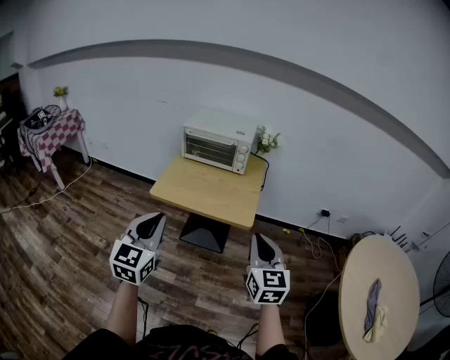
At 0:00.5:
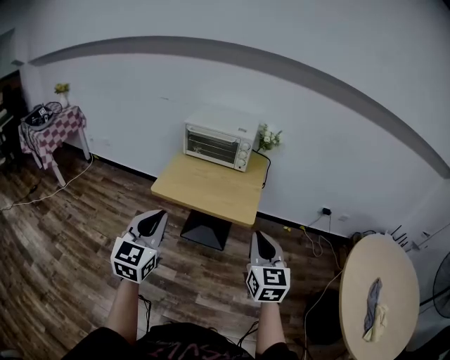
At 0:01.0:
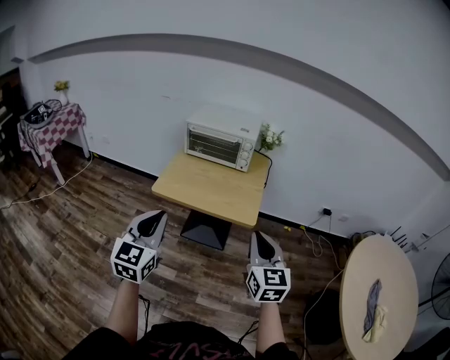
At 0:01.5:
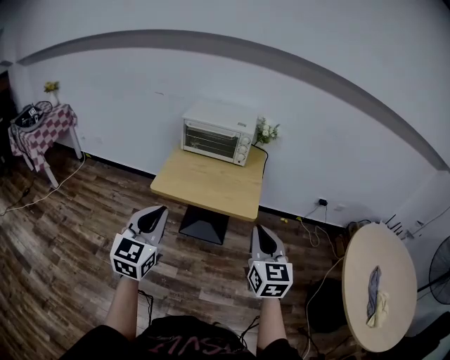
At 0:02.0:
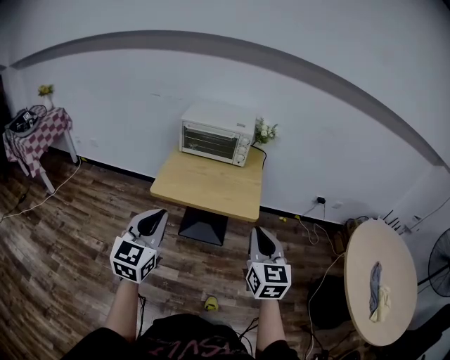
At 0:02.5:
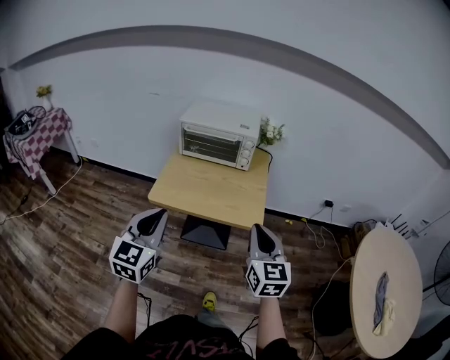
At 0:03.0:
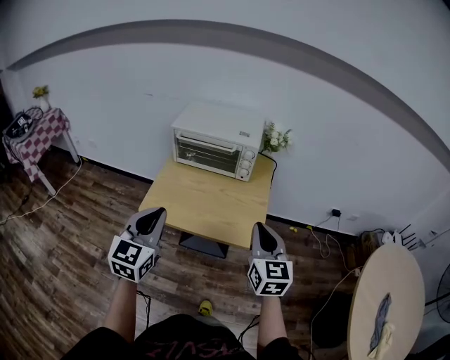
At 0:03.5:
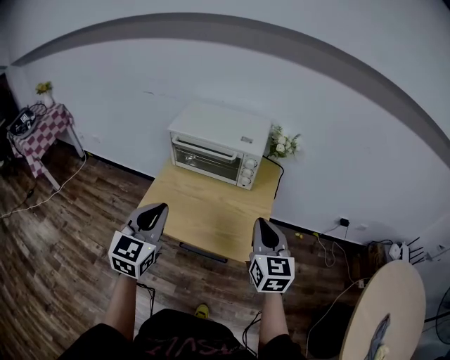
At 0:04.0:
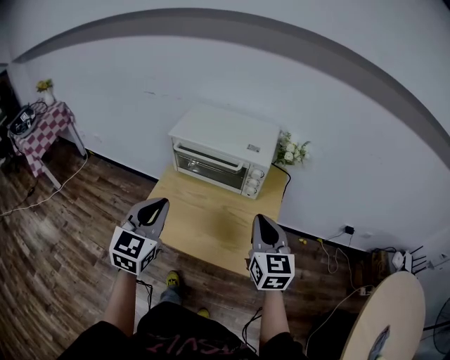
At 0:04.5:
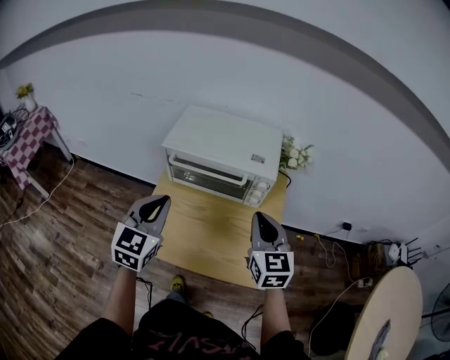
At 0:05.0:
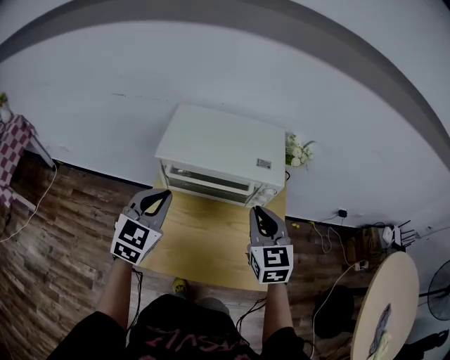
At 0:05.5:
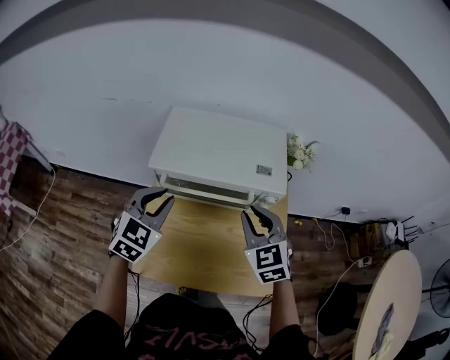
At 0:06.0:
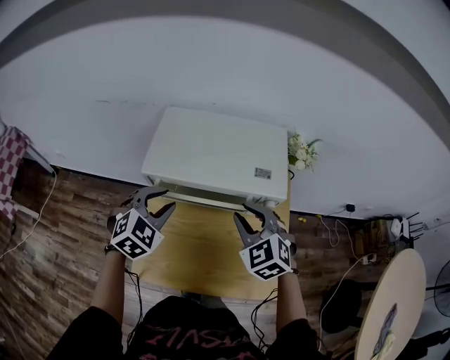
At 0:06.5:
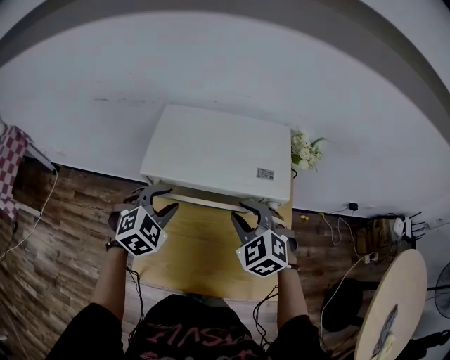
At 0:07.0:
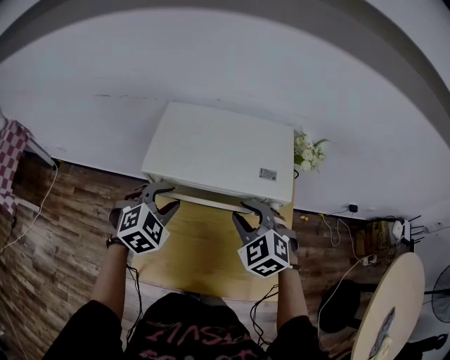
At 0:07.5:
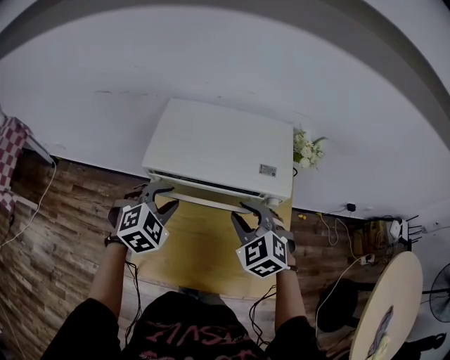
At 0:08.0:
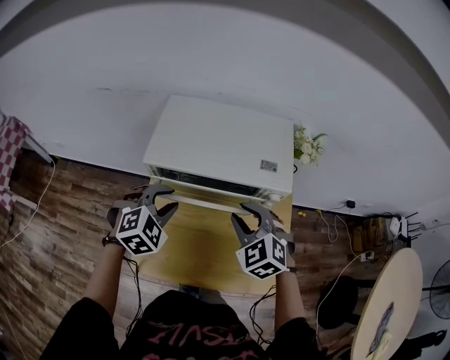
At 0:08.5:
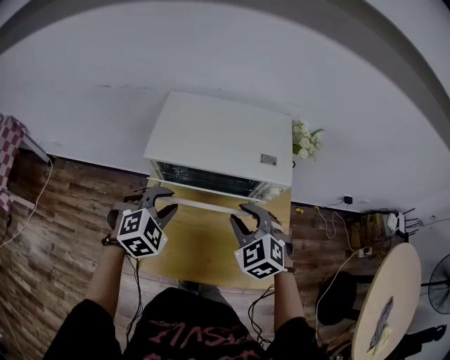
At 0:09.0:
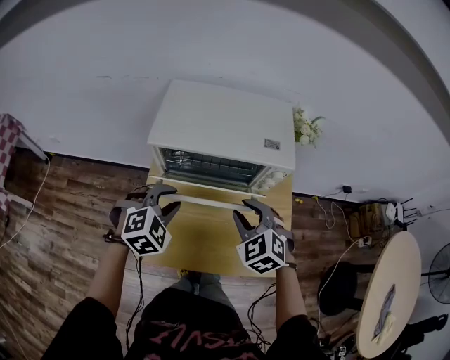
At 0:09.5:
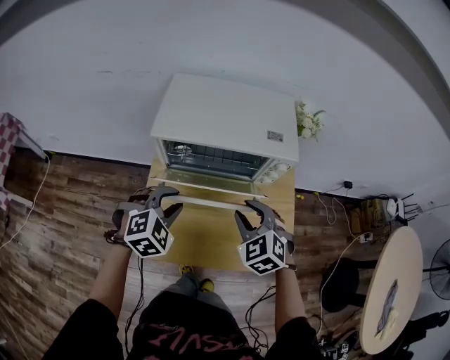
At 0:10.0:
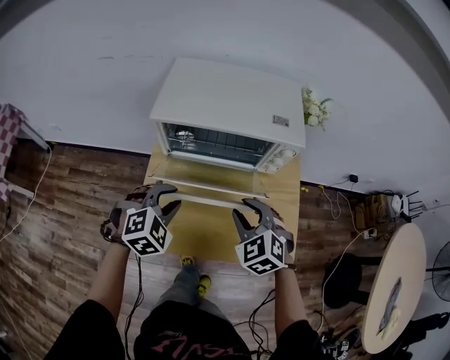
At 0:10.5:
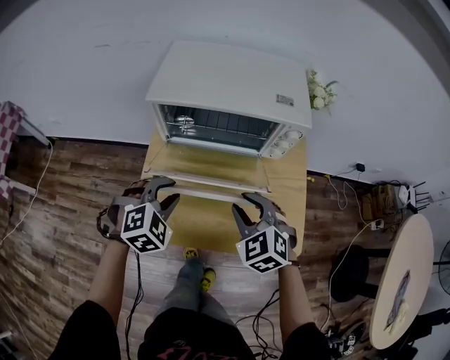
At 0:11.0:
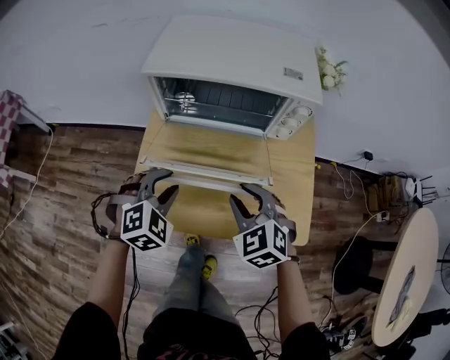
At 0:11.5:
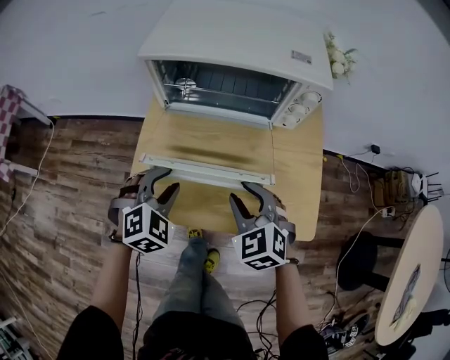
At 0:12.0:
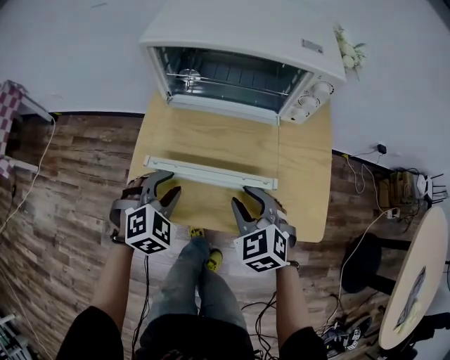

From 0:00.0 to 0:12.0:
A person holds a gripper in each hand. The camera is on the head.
From 0:00.0 to 0:02.0: The two grippers go roughly 5 cm to the left.
From 0:02.0 to 0:04.0: The grippers both shift forward by approximately 40 cm.
From 0:04.0 to 0:06.0: The left gripper shifts approximately 30 cm forward and downward, rotates approximately 40 degrees, and opens up, while the right gripper travels forward and to the left by about 25 cm, changes its angle by approximately 40 degrees, and opens.
From 0:06.0 to 0:08.0: The grippers make only small movements.
From 0:08.0 to 0:10.0: The grippers both shift backward and downward by about 10 cm.
From 0:10.0 to 0:12.0: Both grippers travel together downward and backward, roughly 15 cm.

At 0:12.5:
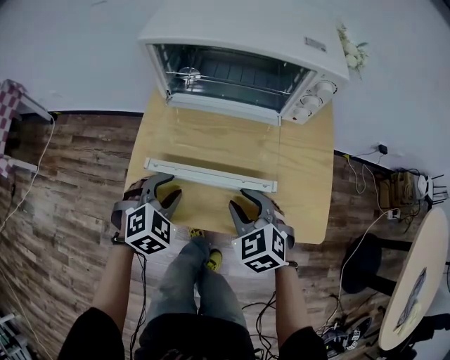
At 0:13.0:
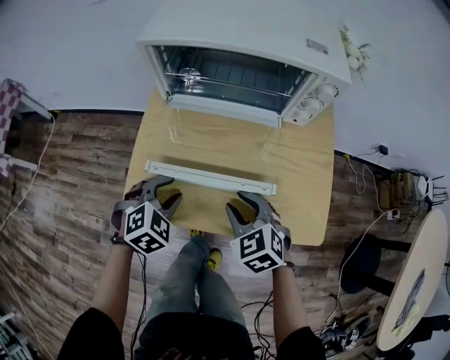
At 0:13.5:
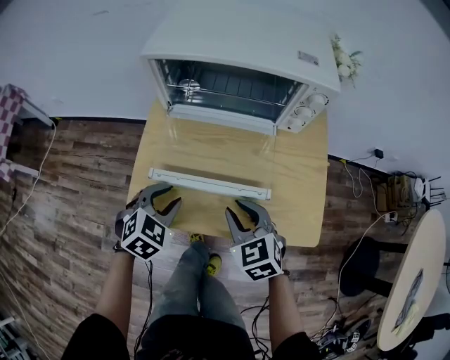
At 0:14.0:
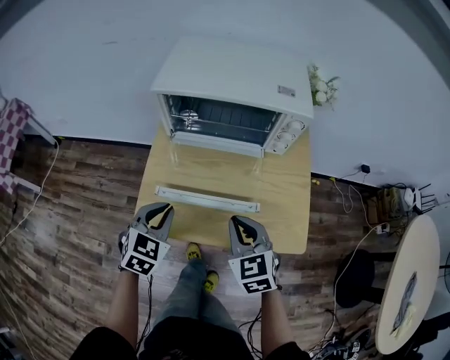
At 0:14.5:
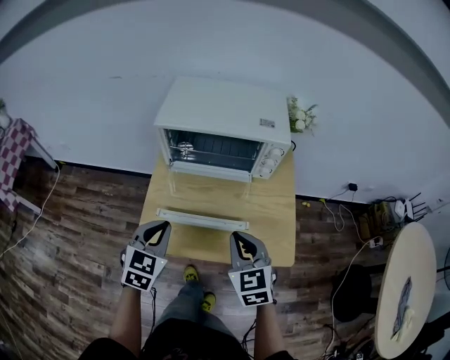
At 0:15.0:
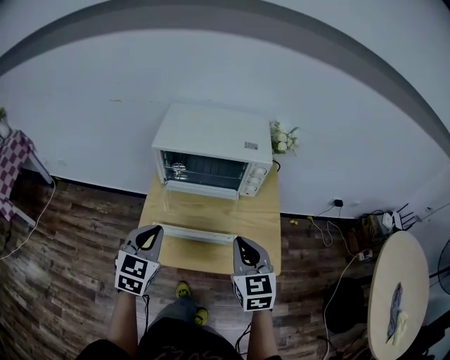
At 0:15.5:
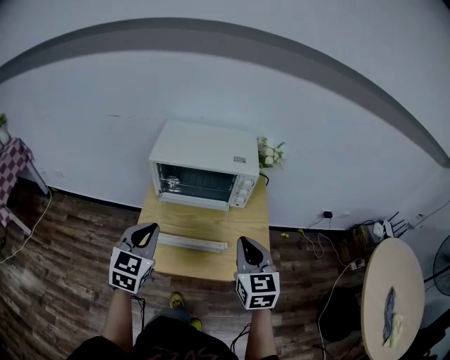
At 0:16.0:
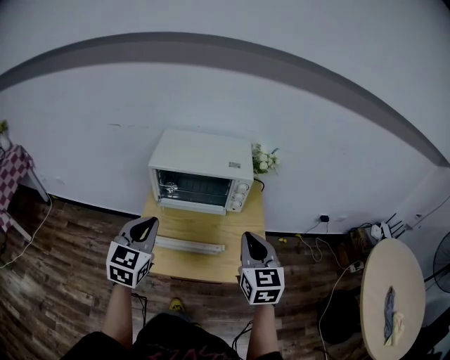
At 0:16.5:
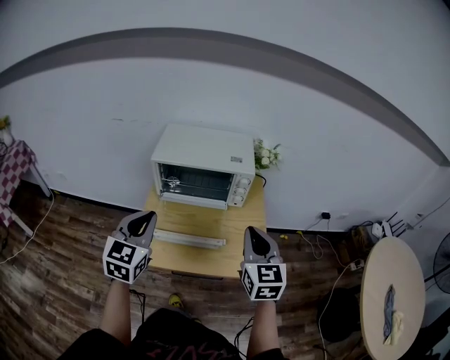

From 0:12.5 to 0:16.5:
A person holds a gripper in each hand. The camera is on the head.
From 0:12.5 to 0:14.5: The grippers both shift upward by about 20 cm. The right gripper rotates approximately 30 degrees, and closes up. Meanwhile the left gripper swivels approximately 30 degrees, and closes.
From 0:14.5 to 0:16.5: The left gripper goes some 20 cm upward; the right gripper goes roughly 20 cm upward and to the right, and swivels roughly 20 degrees.

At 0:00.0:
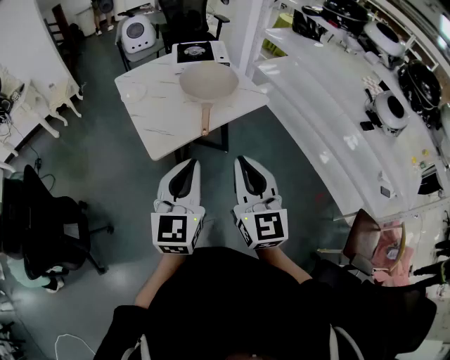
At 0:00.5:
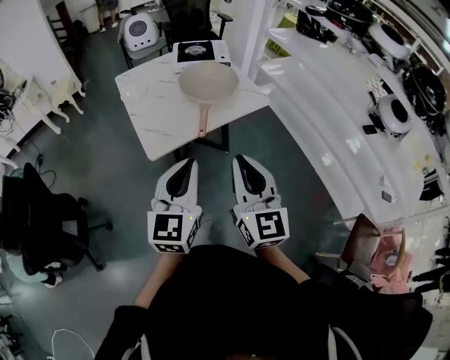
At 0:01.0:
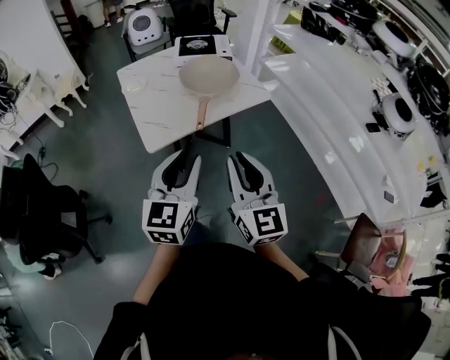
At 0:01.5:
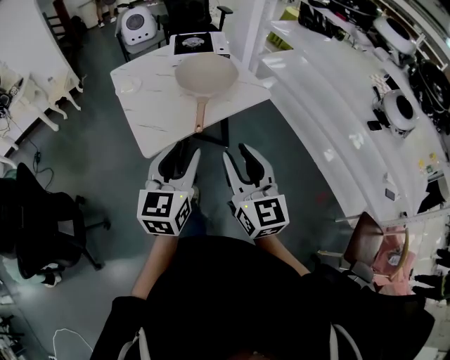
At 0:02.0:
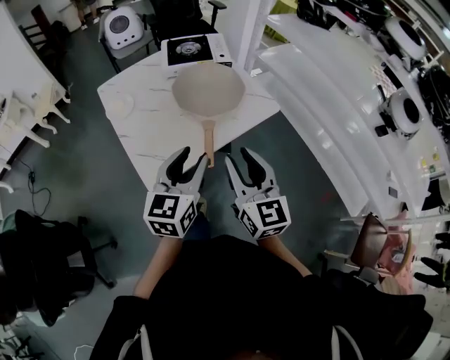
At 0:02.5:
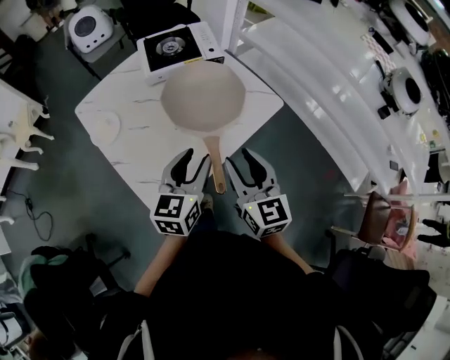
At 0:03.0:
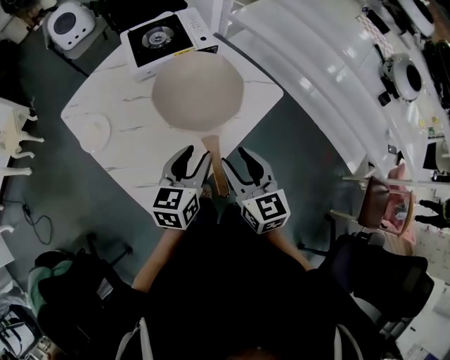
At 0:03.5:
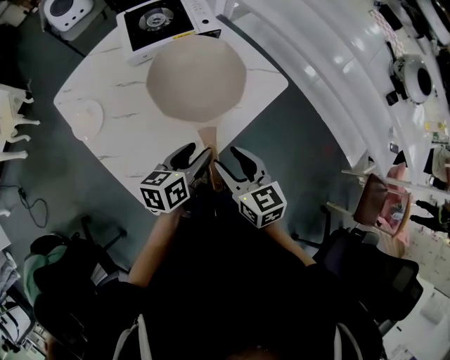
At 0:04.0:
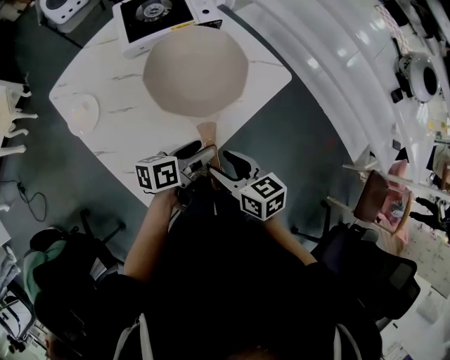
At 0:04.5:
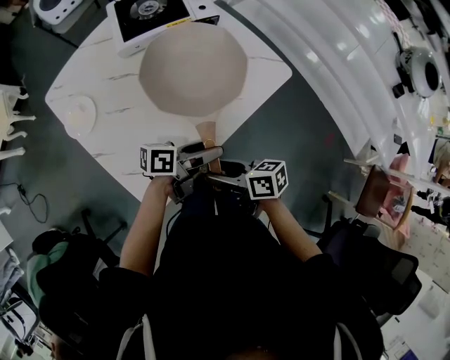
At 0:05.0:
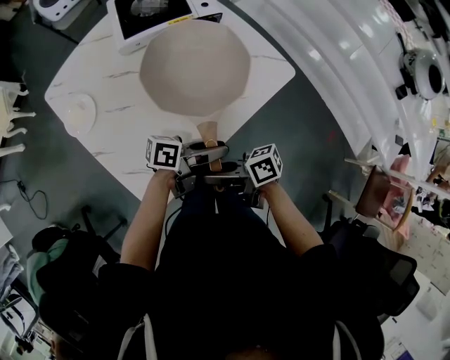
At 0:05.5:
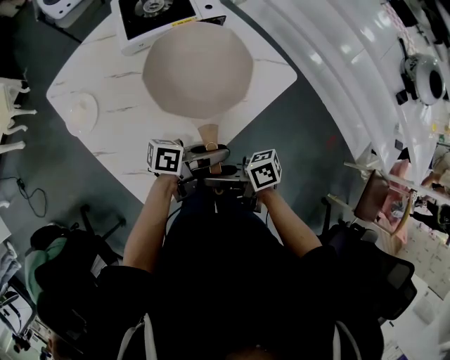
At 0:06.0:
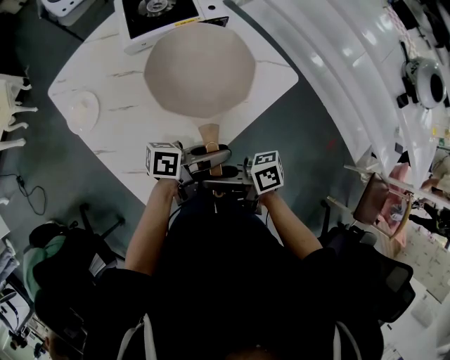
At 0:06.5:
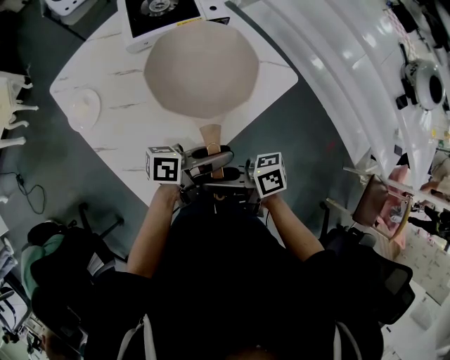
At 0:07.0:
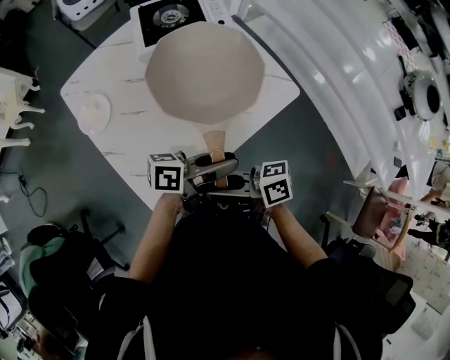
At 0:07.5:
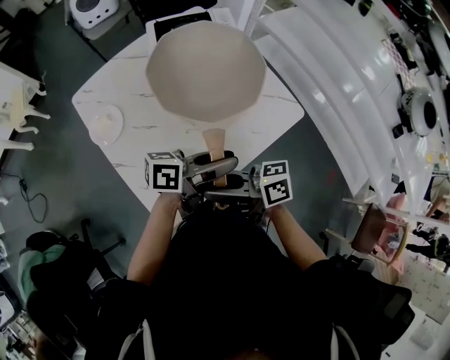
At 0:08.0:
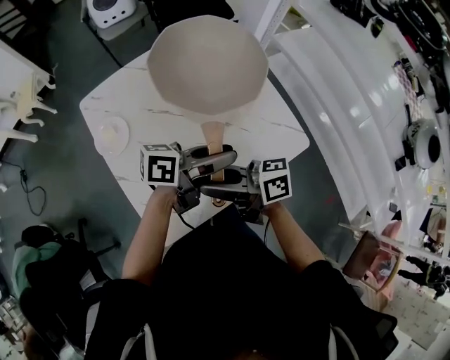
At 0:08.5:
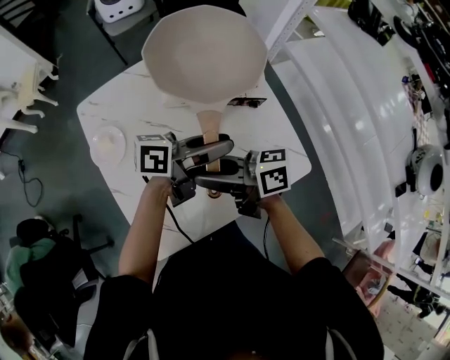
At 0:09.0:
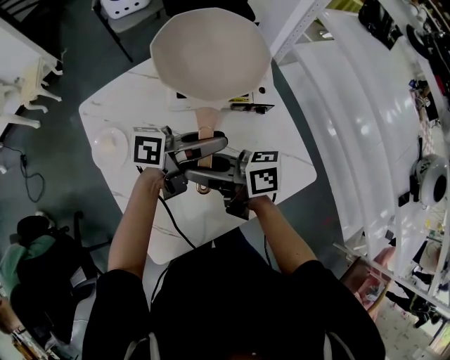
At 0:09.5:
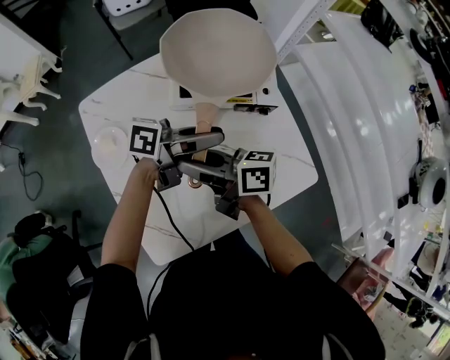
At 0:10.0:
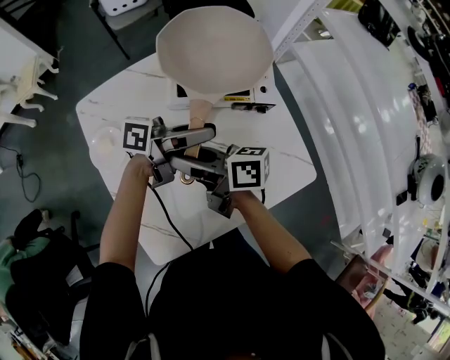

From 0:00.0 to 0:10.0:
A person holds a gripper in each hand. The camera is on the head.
From 0:00.0 to 0:02.0: Both grippers travel together forward, approximately 20 cm. The left gripper opens up. Meanwhile the right gripper opens up.
From 0:02.0 to 0:04.0: Both grippers travel together downward and forward, about 25 cm. The right gripper rotates some 40 degrees, and opens its fingers. Meanwhile the left gripper turns by some 60 degrees.
From 0:04.0 to 0:06.0: The right gripper moves roughly 5 cm, swivels about 50 degrees, and closes up. The left gripper moves roughly 5 cm, rotates roughly 30 degrees, and closes up.
From 0:06.0 to 0:08.0: The right gripper moves roughly 15 cm; the left gripper moves approximately 20 cm.
From 0:08.0 to 0:10.0: The left gripper ends up roughly 15 cm from where it was; the right gripper shifts by about 15 cm.
